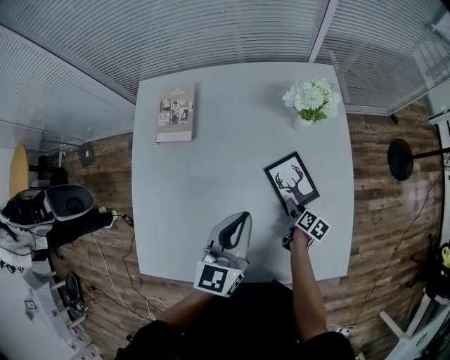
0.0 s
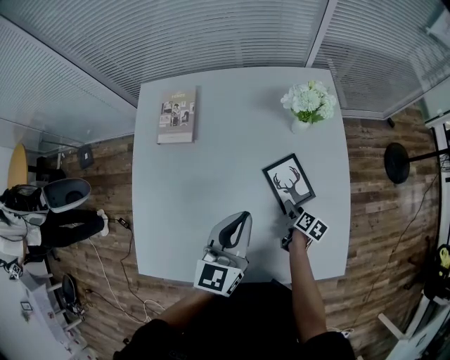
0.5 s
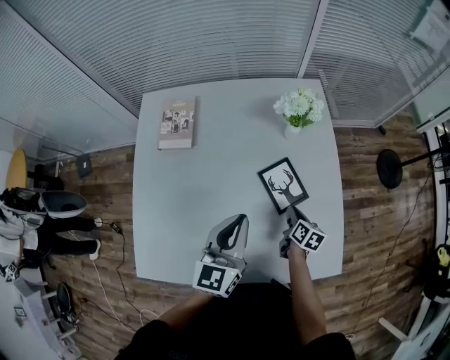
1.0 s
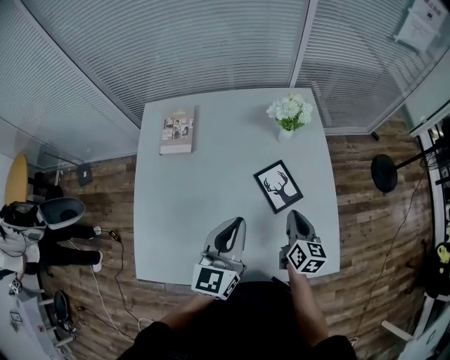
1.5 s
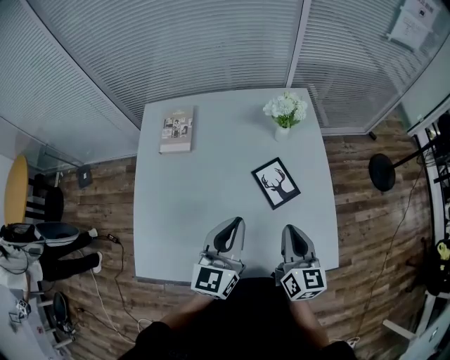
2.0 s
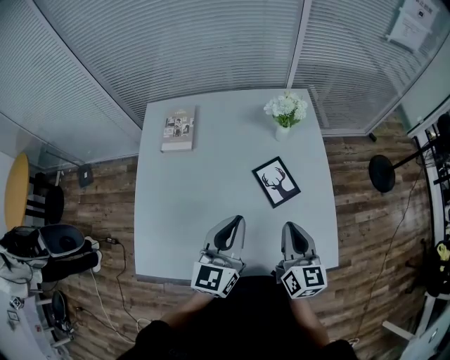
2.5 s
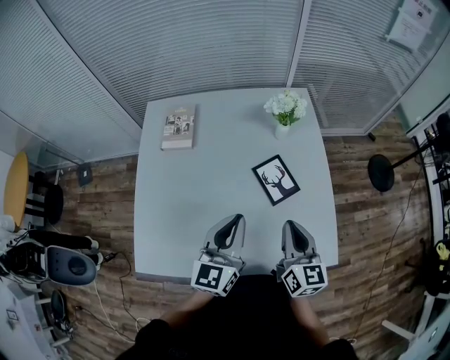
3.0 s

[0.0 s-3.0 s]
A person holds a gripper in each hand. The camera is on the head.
0.0 to 1.5 s: The left gripper travels backward and upward by roughly 10 cm. Meanwhile the right gripper travels upward by some 25 cm, rotates about 40 degrees, and closes its fingers.
1.5 to 3.0 s: The right gripper heads upward and backward, covering approximately 15 cm.

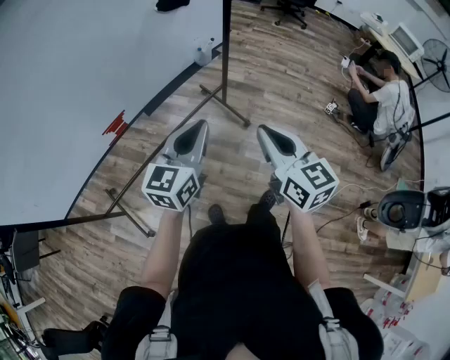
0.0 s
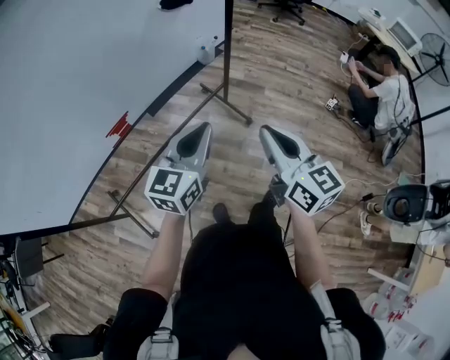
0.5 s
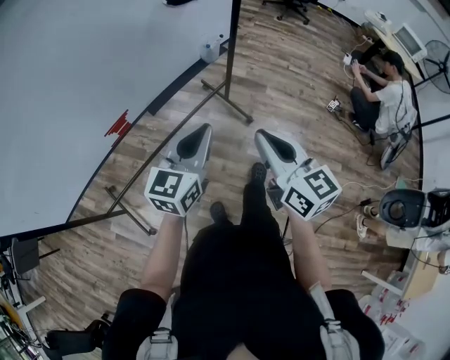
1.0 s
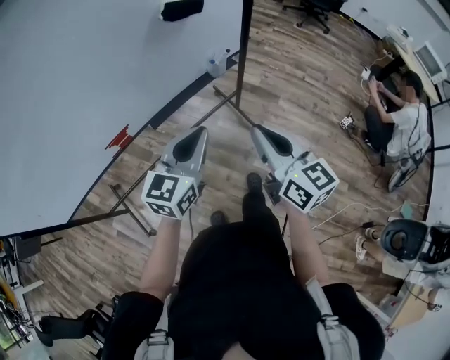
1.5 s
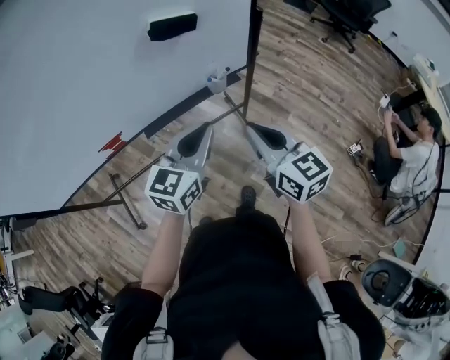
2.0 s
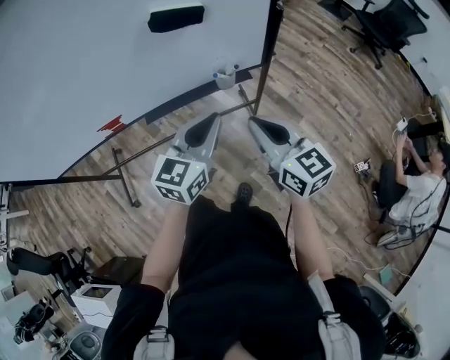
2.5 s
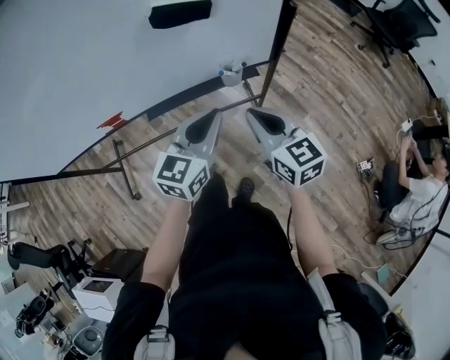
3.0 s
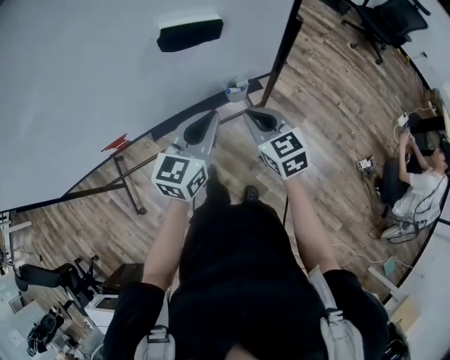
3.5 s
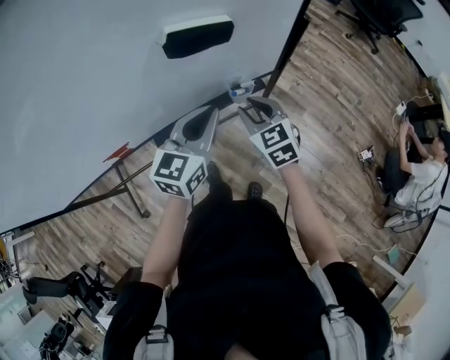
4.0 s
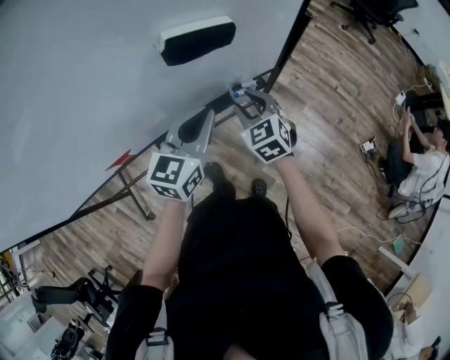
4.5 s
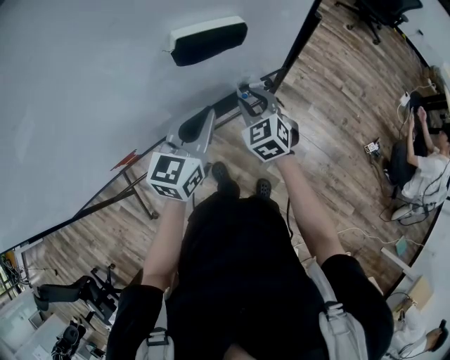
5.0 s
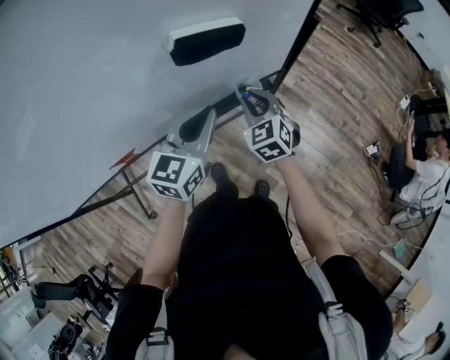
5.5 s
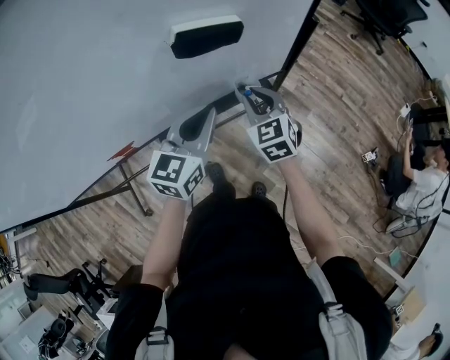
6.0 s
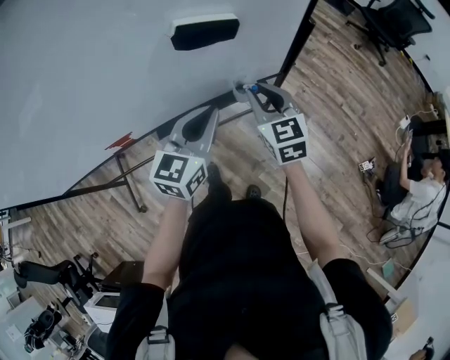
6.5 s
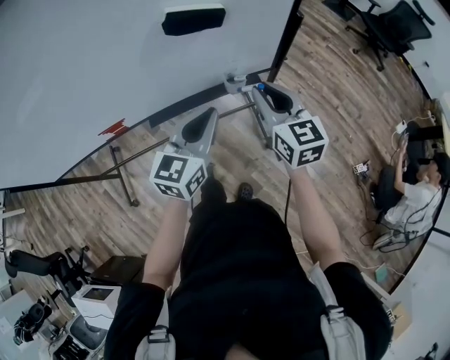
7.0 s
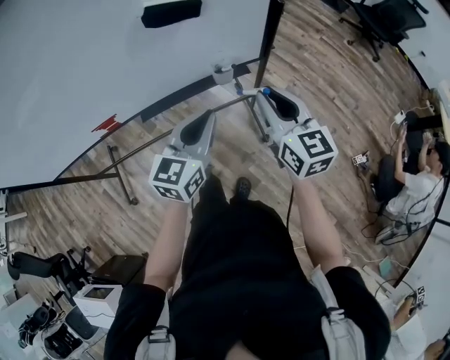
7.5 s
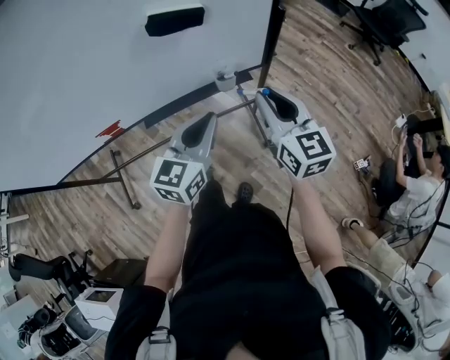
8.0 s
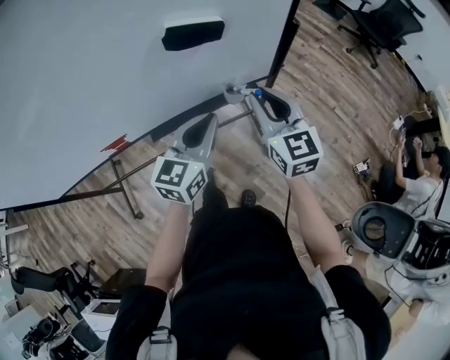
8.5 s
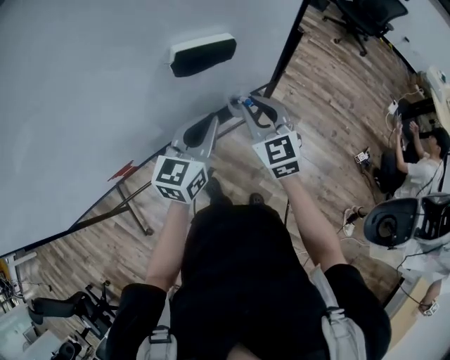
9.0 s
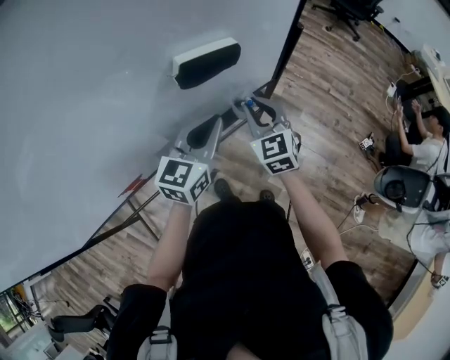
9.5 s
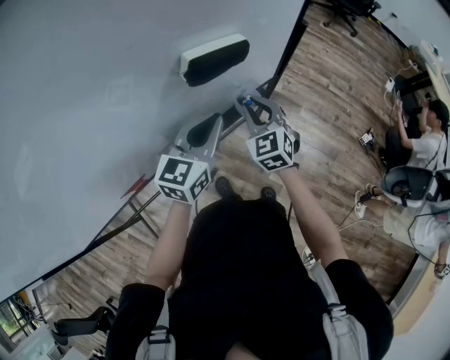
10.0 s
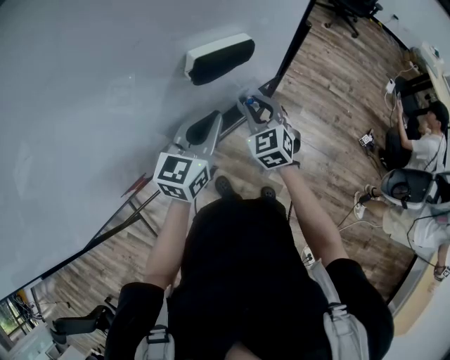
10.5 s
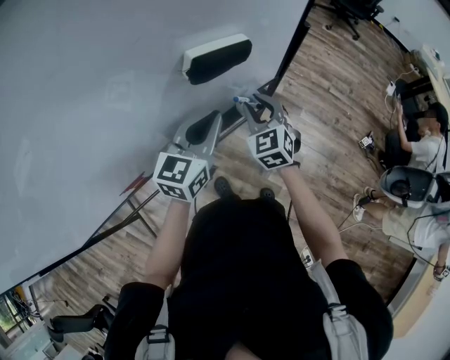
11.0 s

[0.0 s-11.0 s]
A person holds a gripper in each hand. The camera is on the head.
0.0 to 2.0 s: The left gripper heads forward and to the right, covering approximately 20 cm. Meanwhile the right gripper heads forward, covering about 25 cm, and swivels about 20 degrees.
2.0 to 3.5 s: The right gripper travels forward and downward by about 20 cm. The left gripper travels forward by about 15 cm.
3.5 to 5.5 s: The right gripper heads forward and downward, covering about 10 cm, and changes its angle by some 20 degrees. Meanwhile the left gripper heads to the left, covering about 5 cm.
5.5 to 7.5 s: The left gripper travels backward and to the right by about 15 cm; the right gripper shifts about 20 cm upward, to the right and backward, and swivels roughly 40 degrees.
7.5 to 9.0 s: The right gripper heads to the left and forward, covering about 15 cm, and changes its angle by about 20 degrees. The left gripper is displaced forward and to the left by about 15 cm.
9.0 to 11.0 s: The right gripper heads downward, covering roughly 5 cm.

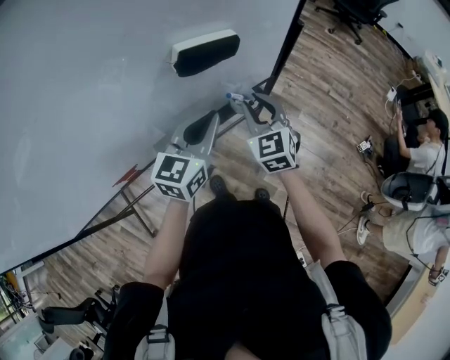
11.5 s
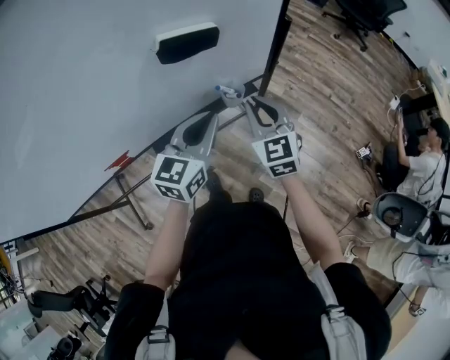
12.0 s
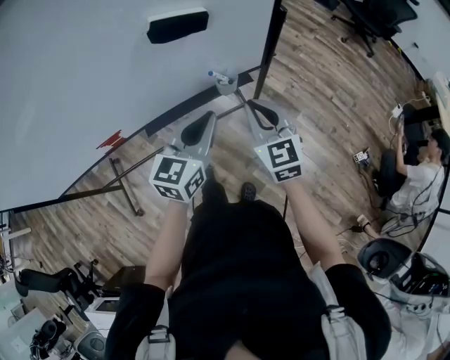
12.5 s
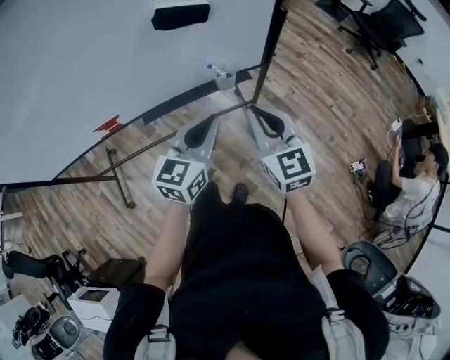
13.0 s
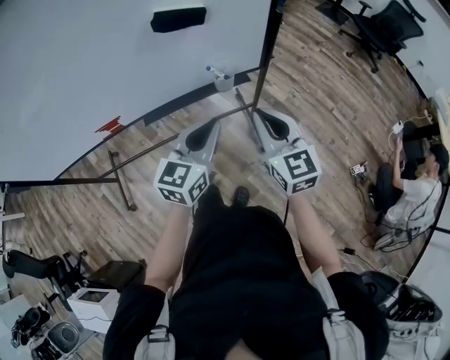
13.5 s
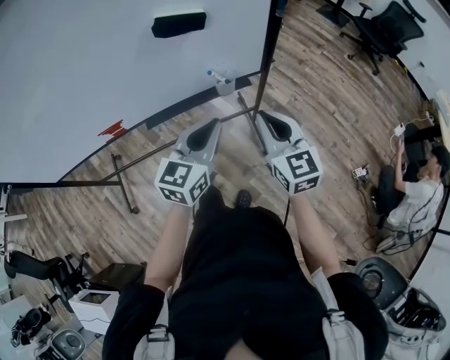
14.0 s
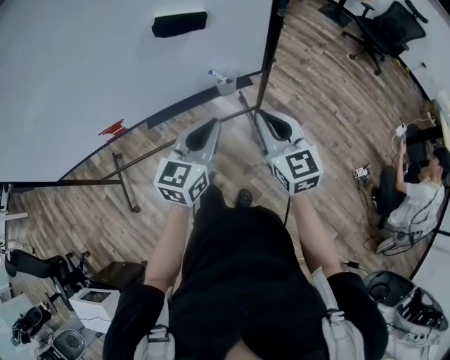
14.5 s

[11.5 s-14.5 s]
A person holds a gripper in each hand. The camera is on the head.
11.5 to 13.0 s: The right gripper travels backward, to the right and upward by approximately 20 cm, rotates roughly 20 degrees, and closes; the left gripper is displaced backward and to the right by roughly 15 cm.
13.0 to 14.5 s: There are only small adjustments of the grippers.

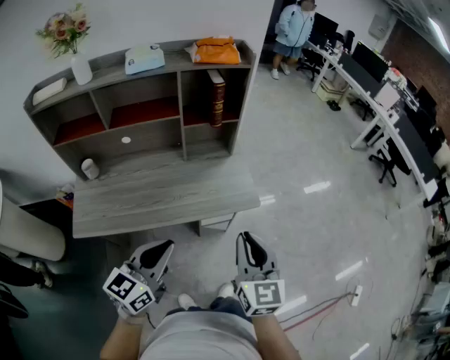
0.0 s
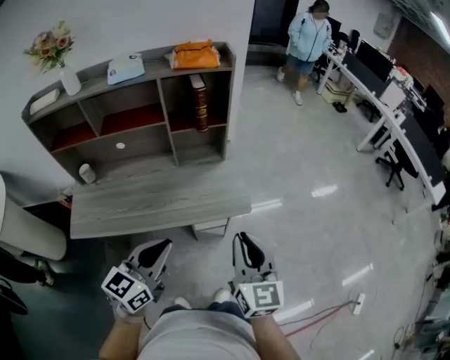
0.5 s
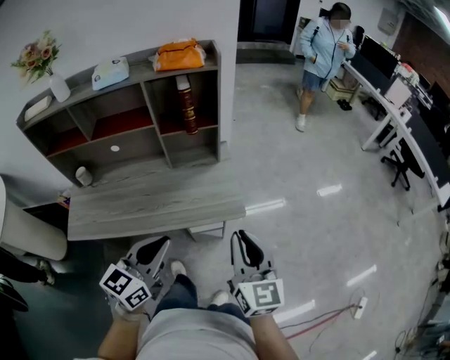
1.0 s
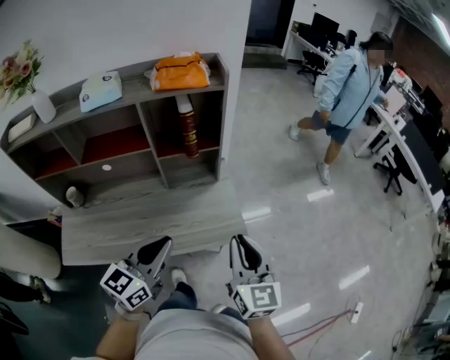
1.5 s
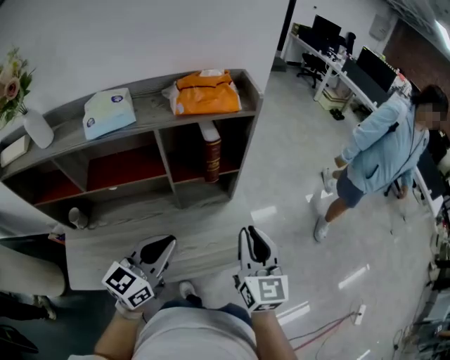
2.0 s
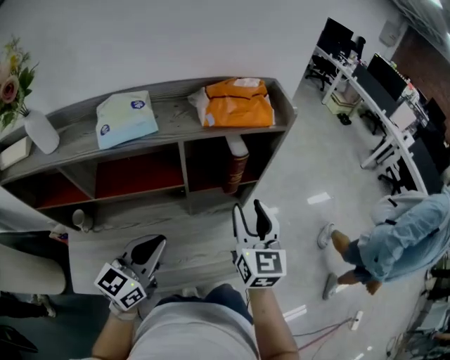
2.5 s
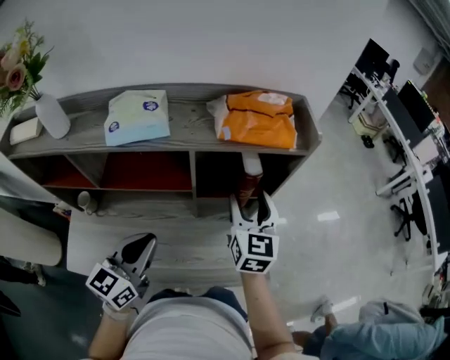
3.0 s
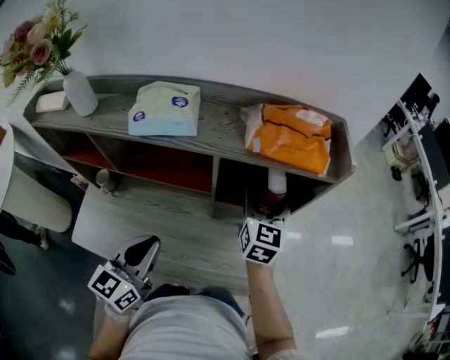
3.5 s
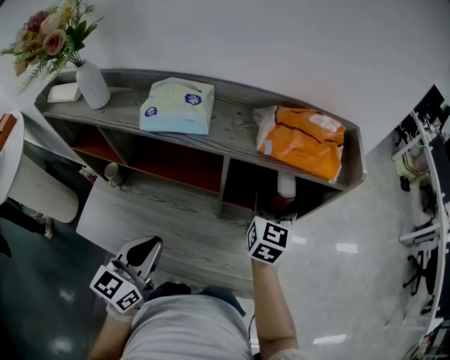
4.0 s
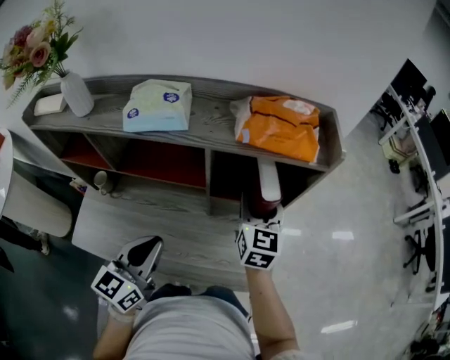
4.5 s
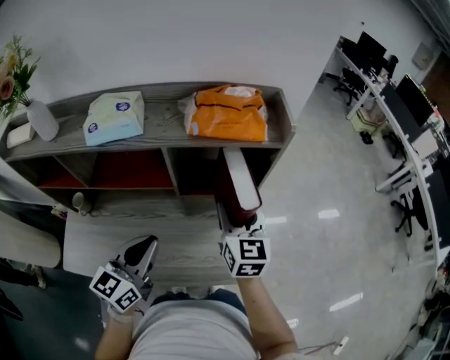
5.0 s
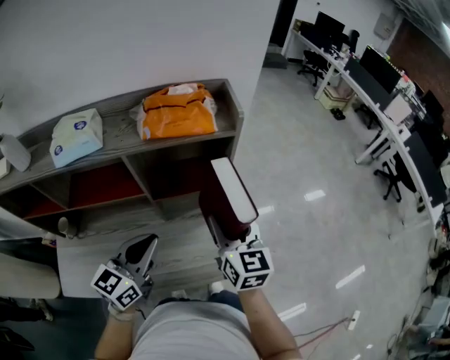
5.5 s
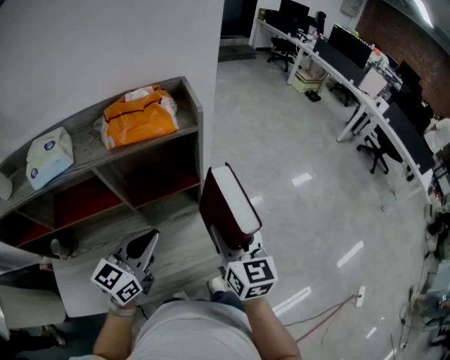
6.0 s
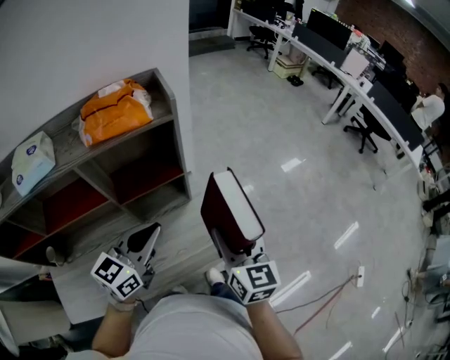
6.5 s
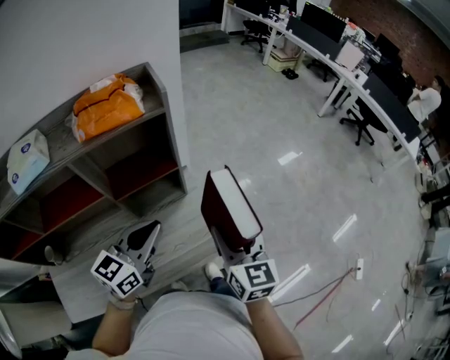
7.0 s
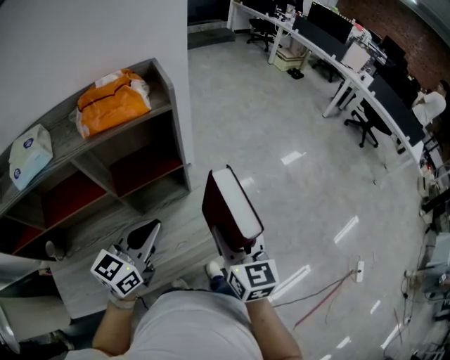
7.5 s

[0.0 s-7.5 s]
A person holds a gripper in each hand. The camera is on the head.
0.0 to 2.0 s: The two grippers go about 30 cm forward.
2.0 to 4.0 s: The left gripper is displaced to the left by about 10 cm, and turns by approximately 30 degrees. Meanwhile the right gripper shifts some 30 cm forward and to the left, and opens.
4.0 to 5.5 s: The left gripper travels to the right by about 10 cm, and turns by about 30 degrees, while the right gripper goes roughly 20 cm backward and to the right.
5.5 to 7.5 s: The right gripper travels to the right and backward by roughly 15 cm; the left gripper shifts about 10 cm to the right.

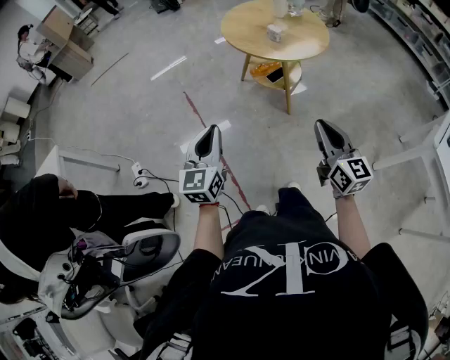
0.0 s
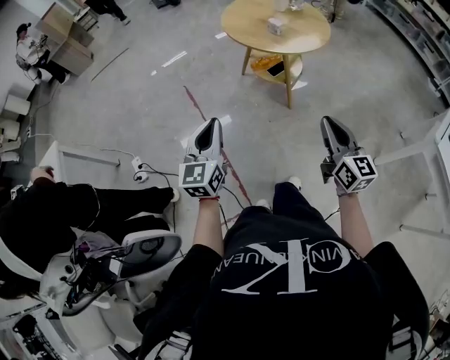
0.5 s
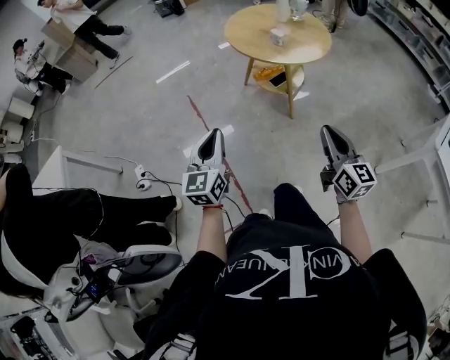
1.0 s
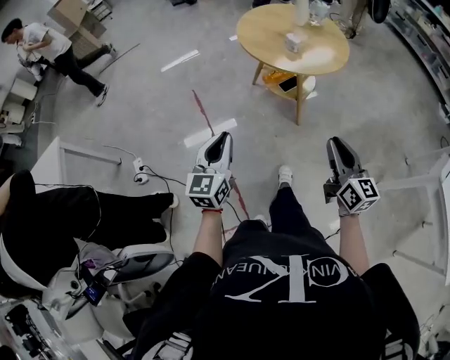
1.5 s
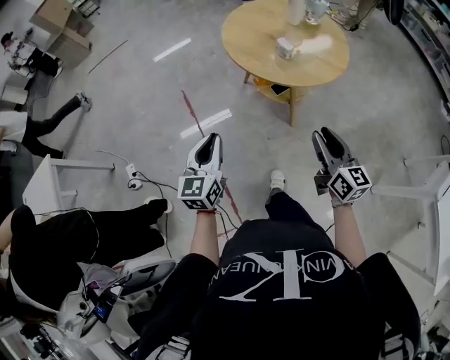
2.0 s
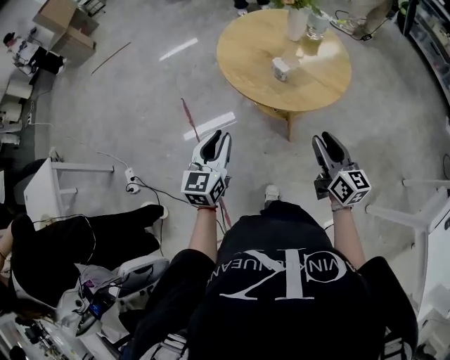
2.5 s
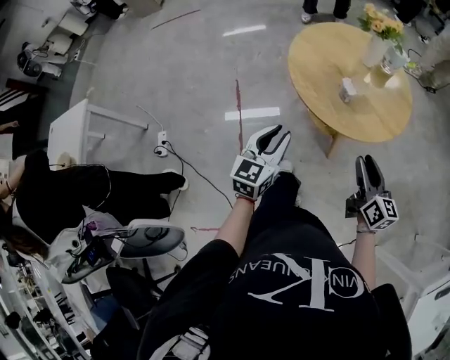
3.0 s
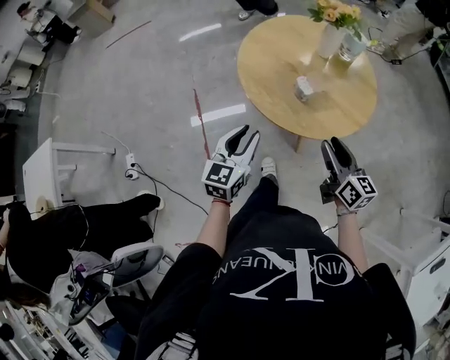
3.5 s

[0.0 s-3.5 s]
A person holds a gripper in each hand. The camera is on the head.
0.0 to 2.0 s: The two grippers go some 20 cm forward.
2.0 to 3.5 s: The right gripper shifts about 20 cm forward. Meanwhile the left gripper moves forward and to the right, some 25 cm.
